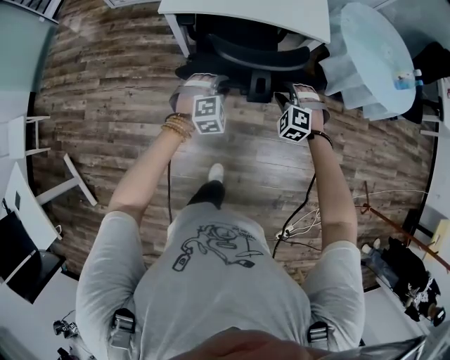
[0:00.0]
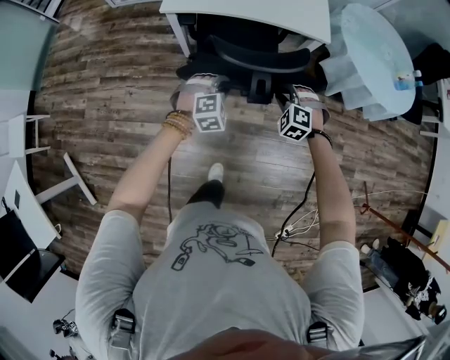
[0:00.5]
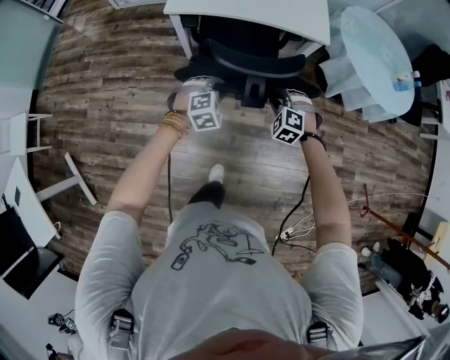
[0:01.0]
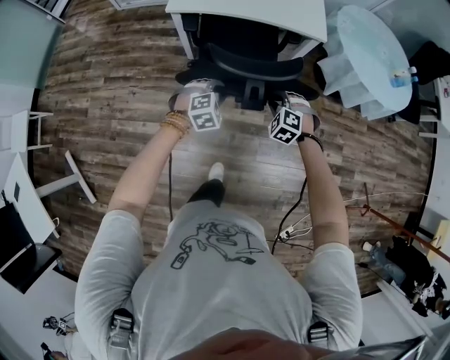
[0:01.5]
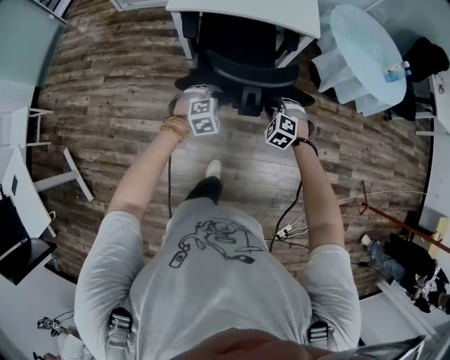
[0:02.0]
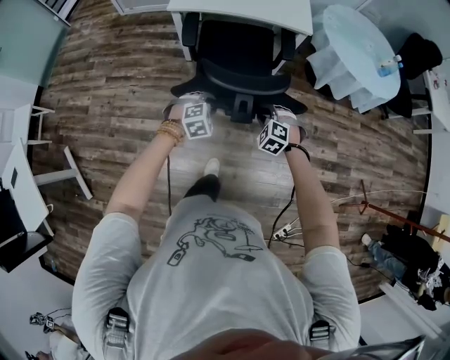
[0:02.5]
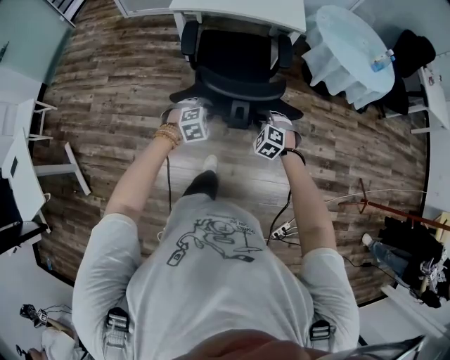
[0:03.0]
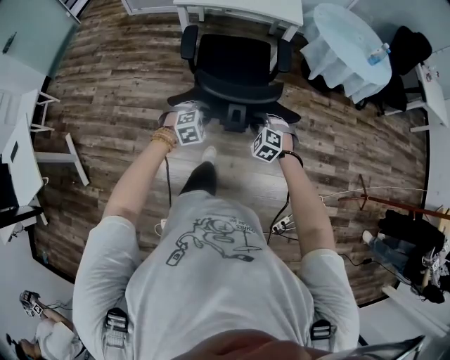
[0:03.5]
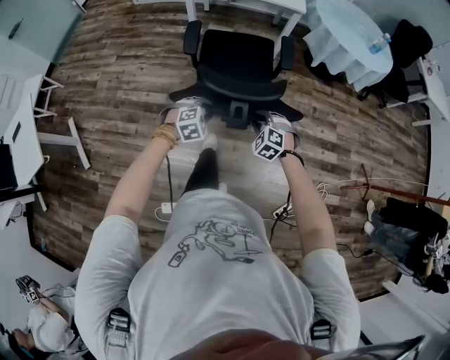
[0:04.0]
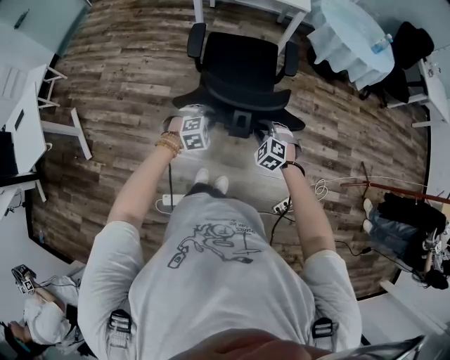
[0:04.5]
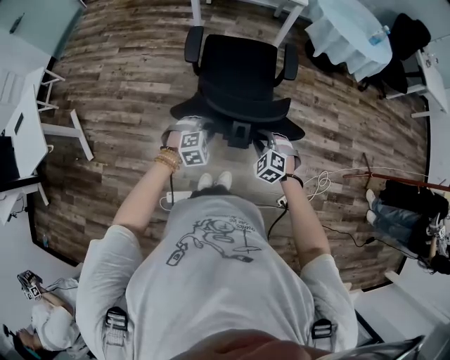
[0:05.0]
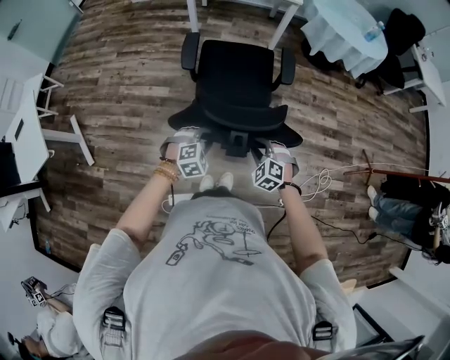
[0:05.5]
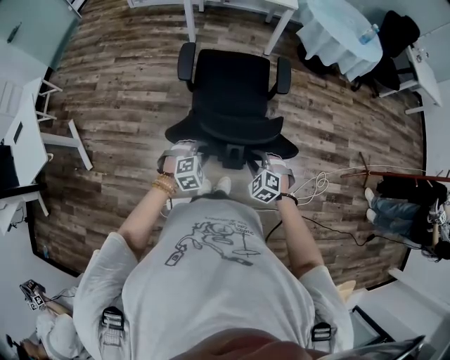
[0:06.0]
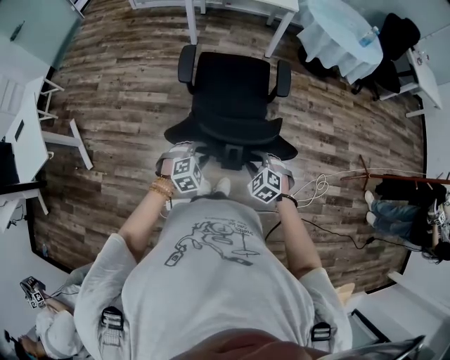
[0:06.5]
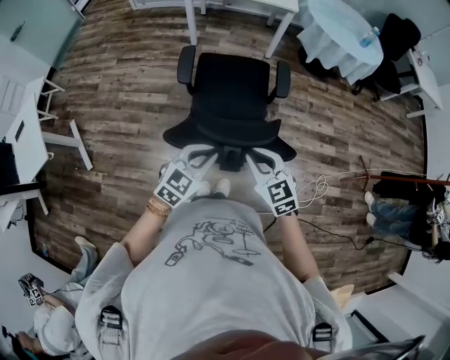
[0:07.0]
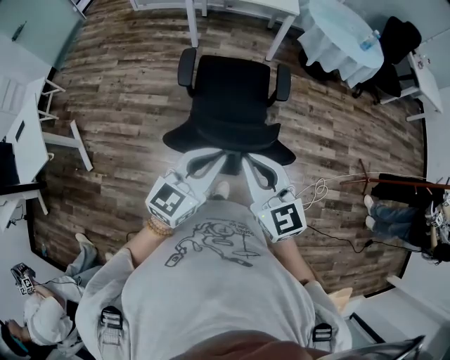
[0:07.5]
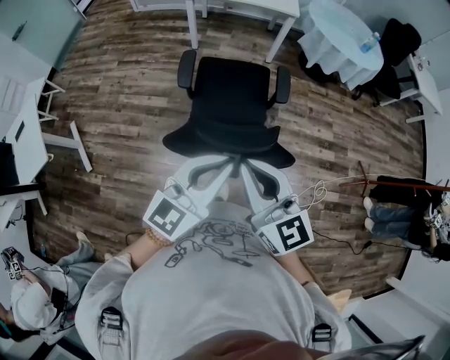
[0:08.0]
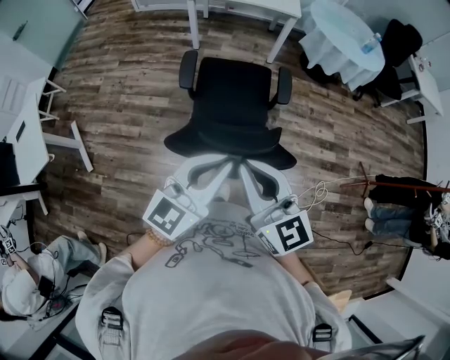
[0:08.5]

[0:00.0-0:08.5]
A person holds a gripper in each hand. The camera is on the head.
0:00.0 to 0:02.0: Both grippers travel together backward, about 15 cm.
0:02.0 to 0:04.0: The two grippers travel together, backward, about 40 cm.
0:04.0 to 0:06.5: Both grippers travel together backward, about 25 cm.
0:06.5 to 0:08.5: The two grippers go some 35 cm upward. The left gripper tips its fingers upward by some 50 degrees, and closes. The right gripper tips its fingers upward by roughly 50 degrees, and closes up.

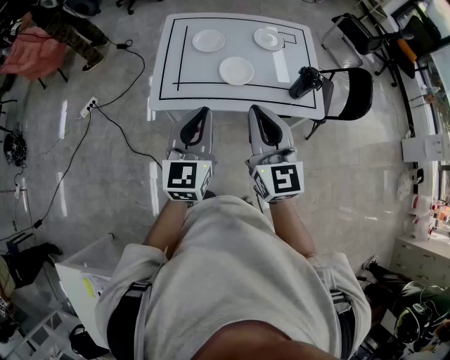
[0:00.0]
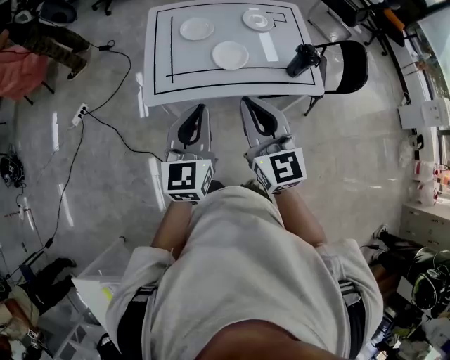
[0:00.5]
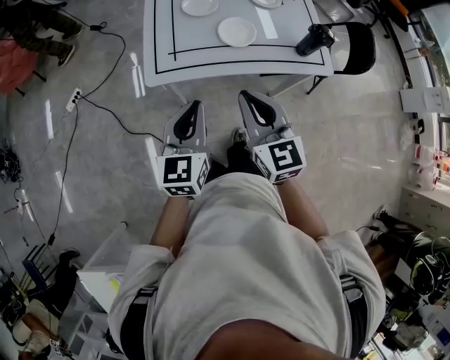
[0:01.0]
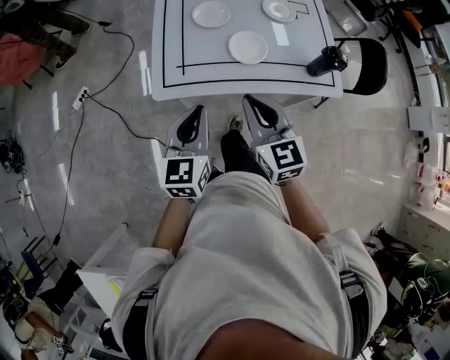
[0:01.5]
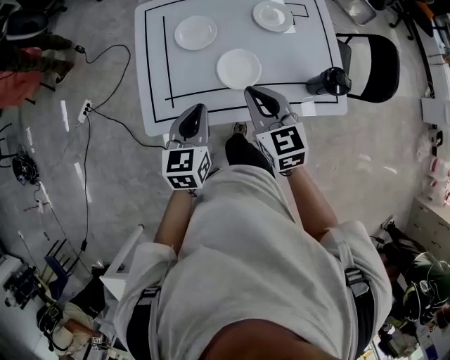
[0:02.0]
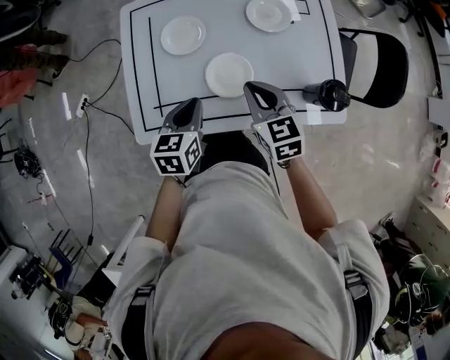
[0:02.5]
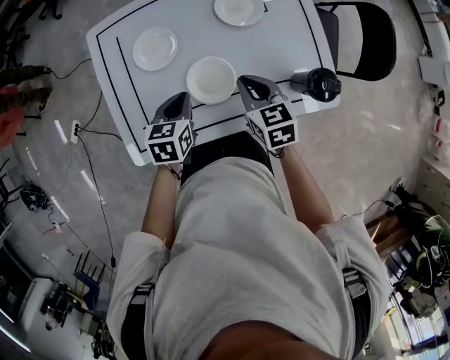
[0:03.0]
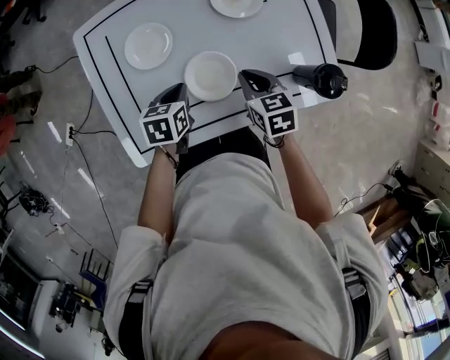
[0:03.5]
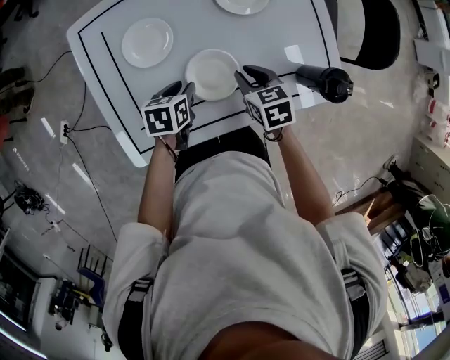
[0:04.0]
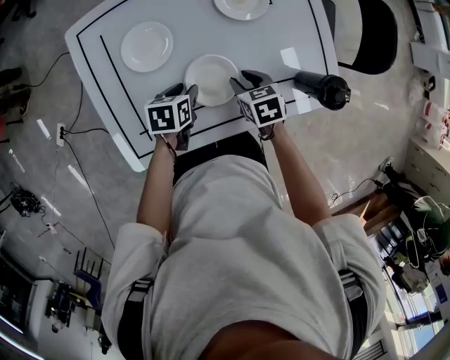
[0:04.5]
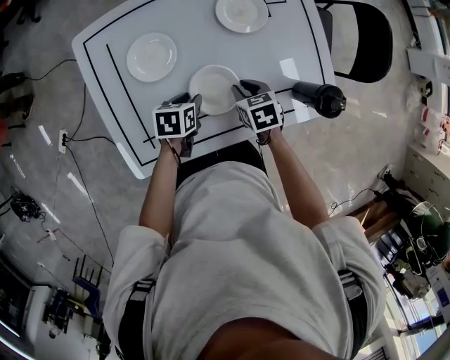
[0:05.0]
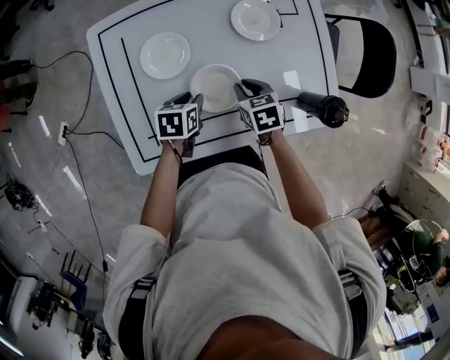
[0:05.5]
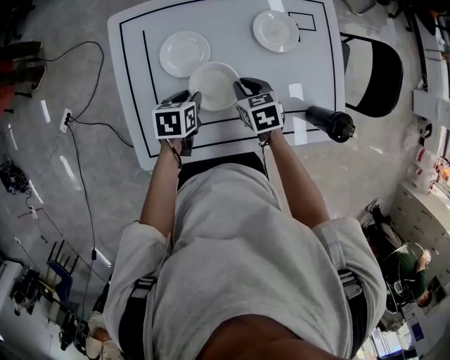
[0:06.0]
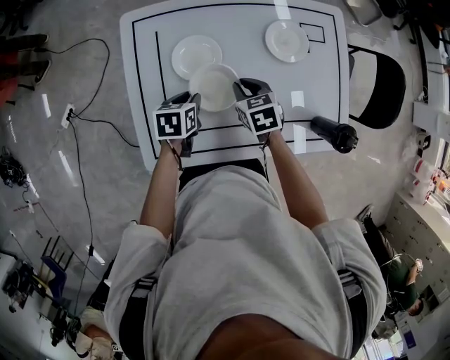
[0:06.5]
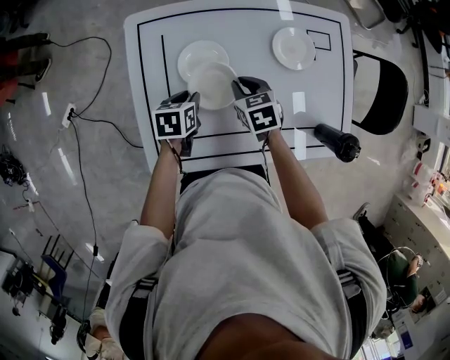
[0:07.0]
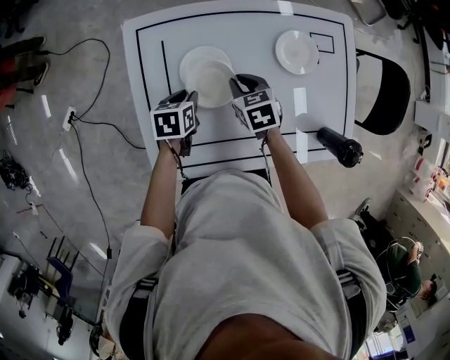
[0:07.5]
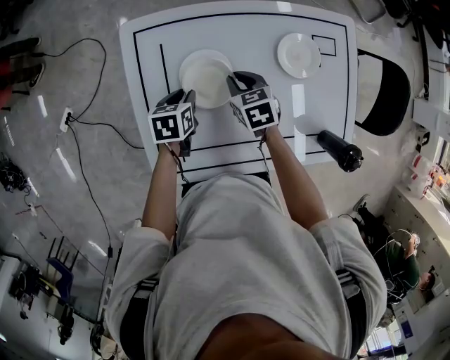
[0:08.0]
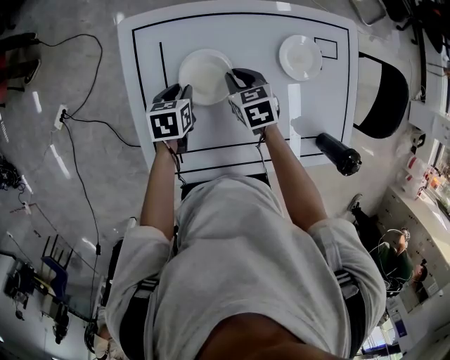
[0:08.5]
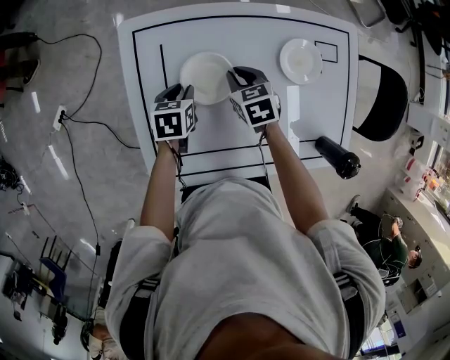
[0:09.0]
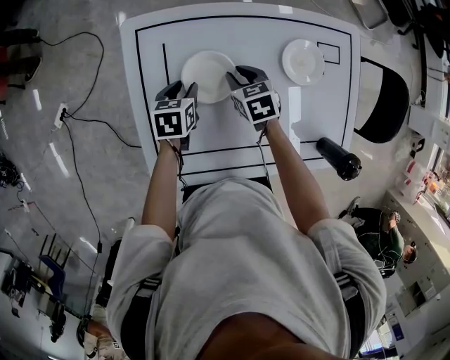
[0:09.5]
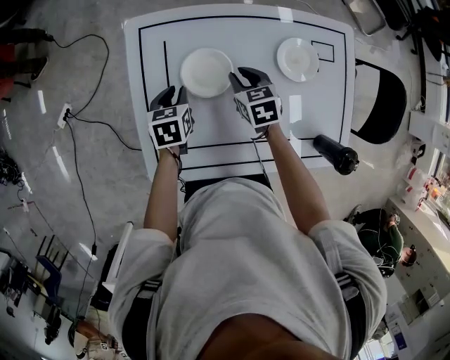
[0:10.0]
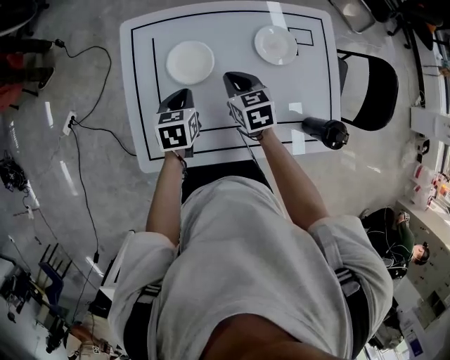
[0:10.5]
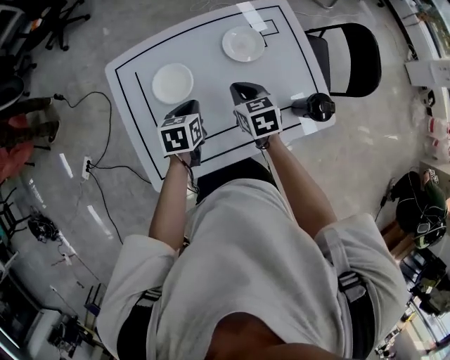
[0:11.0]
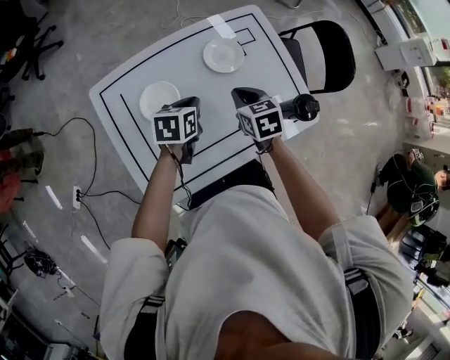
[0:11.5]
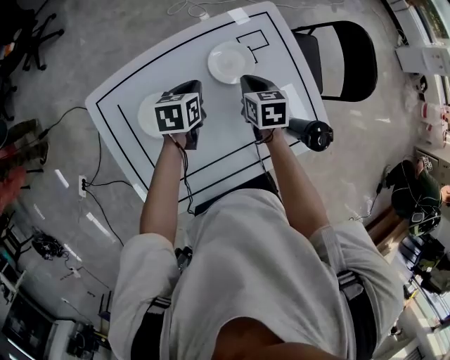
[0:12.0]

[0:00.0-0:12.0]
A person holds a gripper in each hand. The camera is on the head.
0:00.0 to 0:02.0: Both grippers travel together forward and downward, about 25 cm. The left gripper turns by approximately 20 degrees, while the right gripper rotates approximately 30 degrees.
0:02.0 to 0:04.0: Both grippers travel together downward and forward, about 25 cm. The right gripper swivels some 30 degrees, and opens up; the left gripper tips its fingers downward by roughly 30 degrees, and opens up.
0:04.0 to 0:06.0: Both grippers move to the left, some 5 cm.
0:06.0 to 0:08.0: Both grippers move forward and to the left, about 15 cm.
0:08.0 to 0:10.0: The grippers make only small movements.
0:10.0 to 0:12.0: The left gripper ends up approximately 25 cm from where it was, turns by some 30 degrees, and closes up; the right gripper shifts by roughly 25 cm, changes its angle by approximately 30 degrees, and closes up.

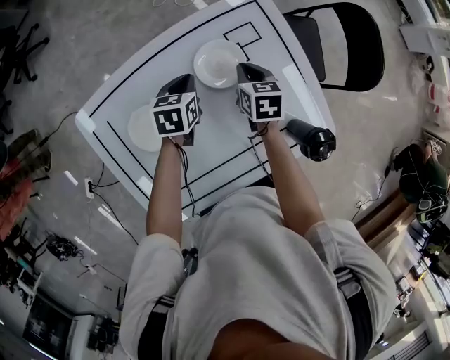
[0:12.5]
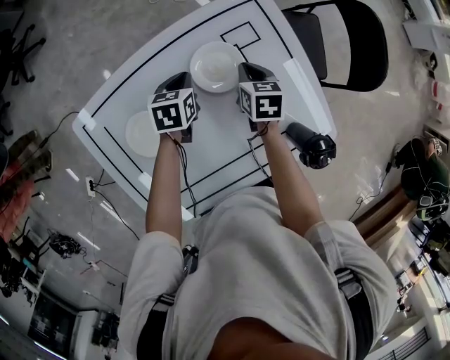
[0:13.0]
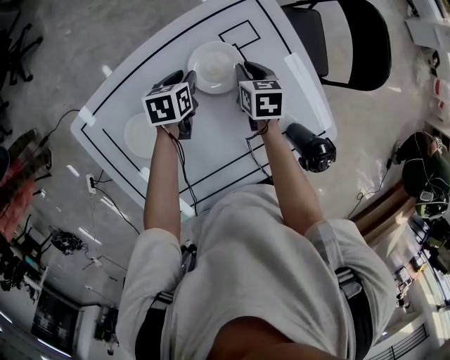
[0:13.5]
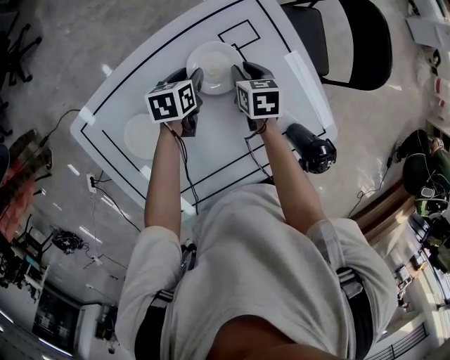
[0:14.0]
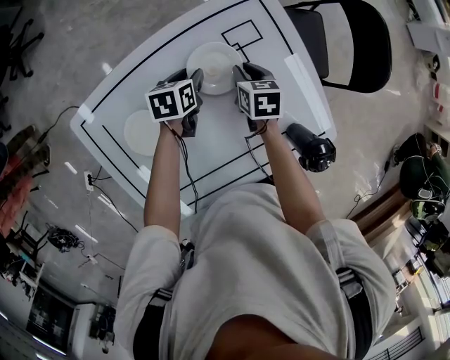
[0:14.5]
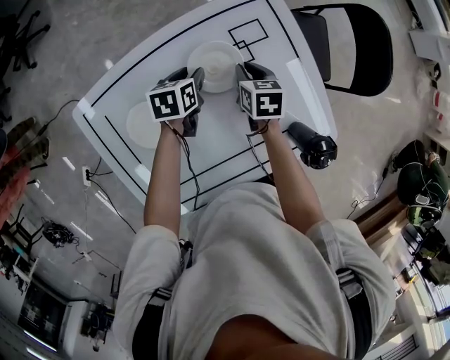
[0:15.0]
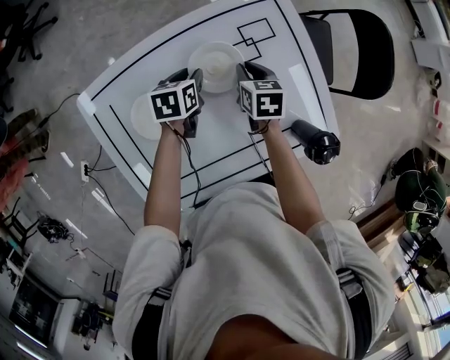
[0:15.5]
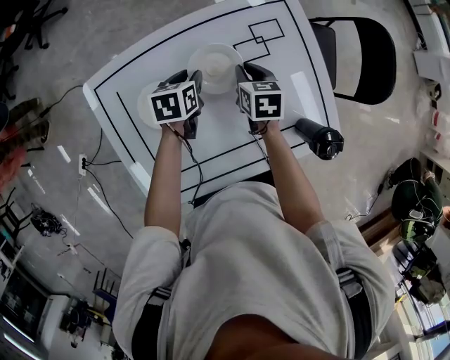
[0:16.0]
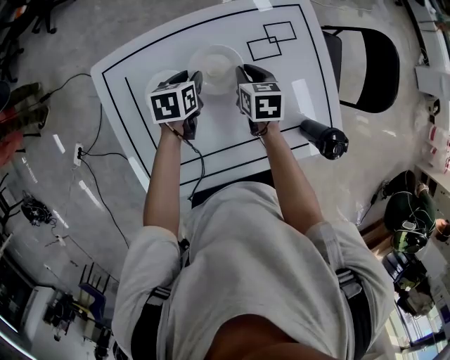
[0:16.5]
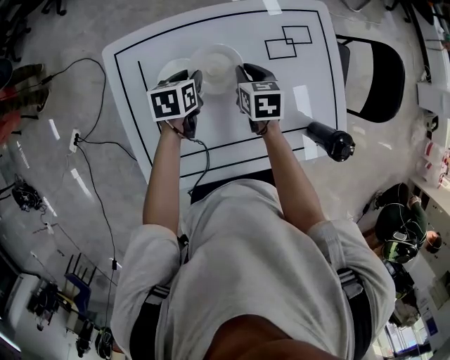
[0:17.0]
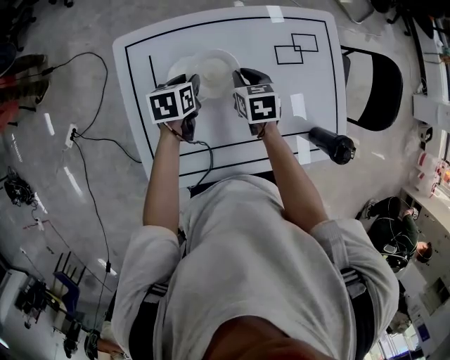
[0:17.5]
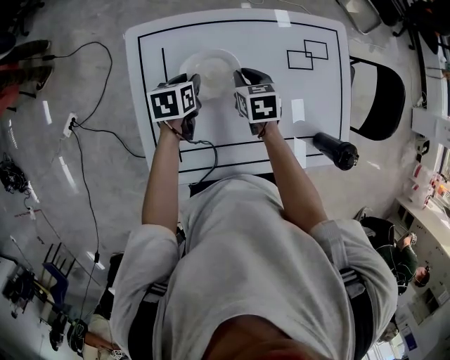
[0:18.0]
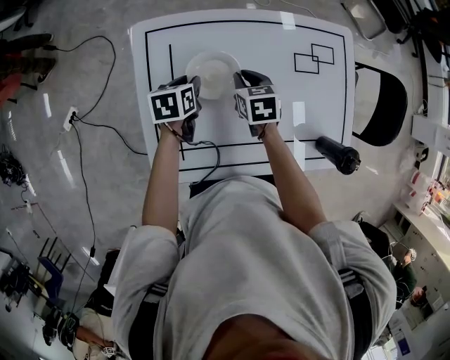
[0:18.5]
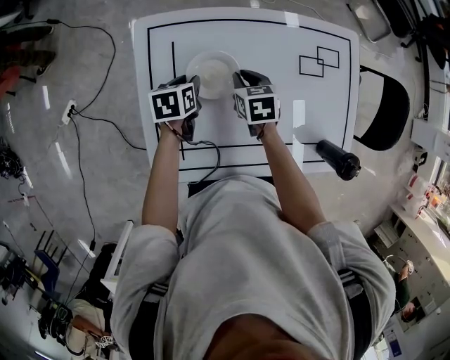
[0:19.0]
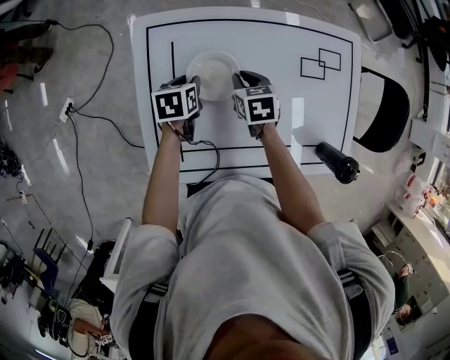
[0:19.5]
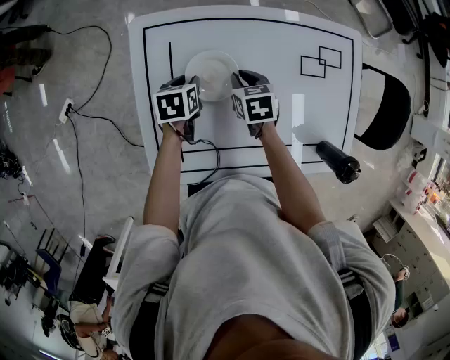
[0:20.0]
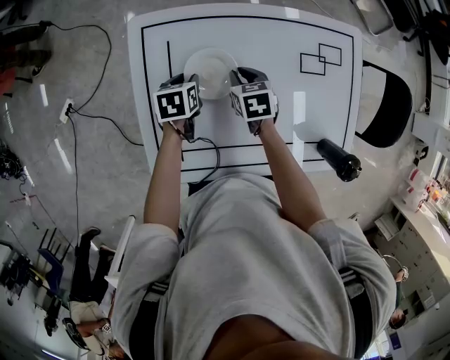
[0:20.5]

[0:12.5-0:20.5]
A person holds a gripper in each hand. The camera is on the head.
0:12.5 to 0:14.5: The two grippers go roughly 5 cm downward. The left gripper opens its fingers.
0:14.5 to 0:16.5: The left gripper travels backward, to the left and upward by some 15 cm. Meanwhile the right gripper goes some 15 cm to the left, backward and upward.
0:16.5 to 0:18.5: Both grippers move to the left, some 15 cm.
0:18.5 to 0:20.5: The grippers make only small movements.
